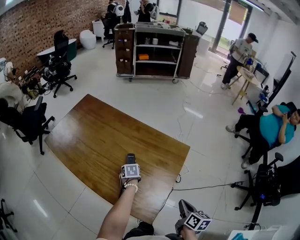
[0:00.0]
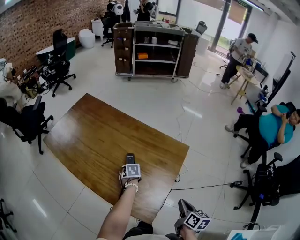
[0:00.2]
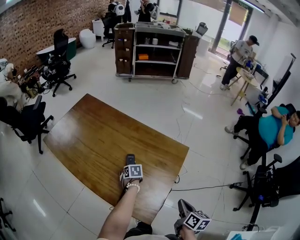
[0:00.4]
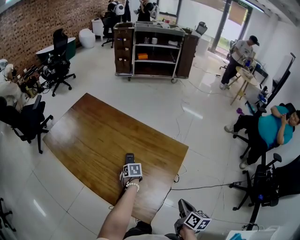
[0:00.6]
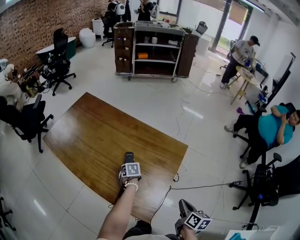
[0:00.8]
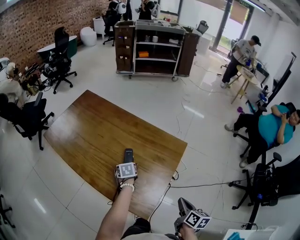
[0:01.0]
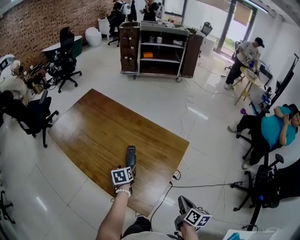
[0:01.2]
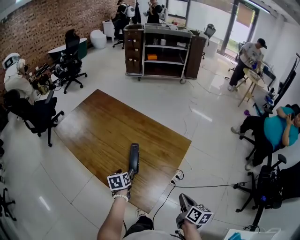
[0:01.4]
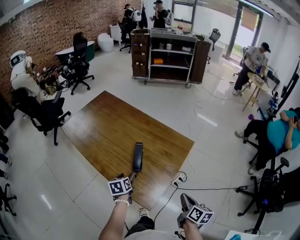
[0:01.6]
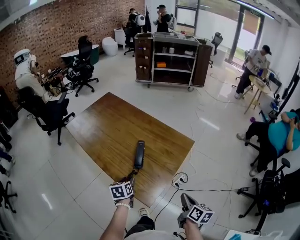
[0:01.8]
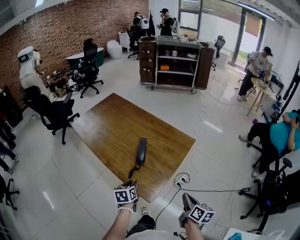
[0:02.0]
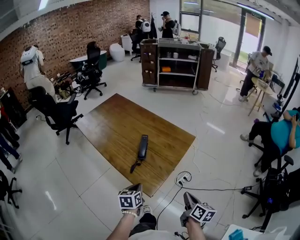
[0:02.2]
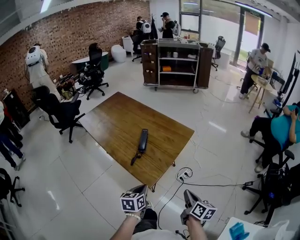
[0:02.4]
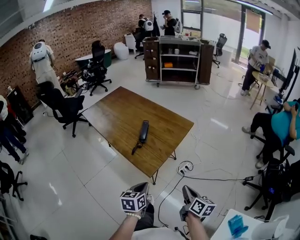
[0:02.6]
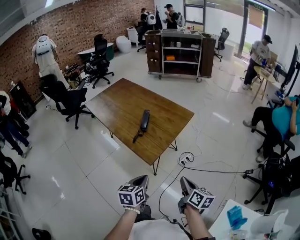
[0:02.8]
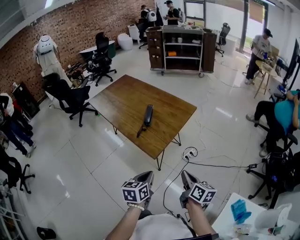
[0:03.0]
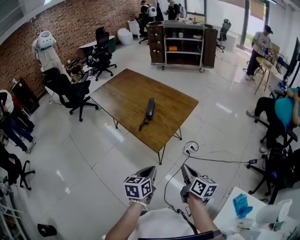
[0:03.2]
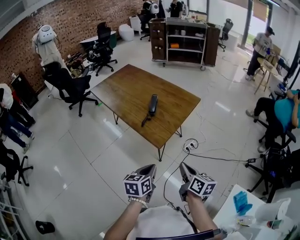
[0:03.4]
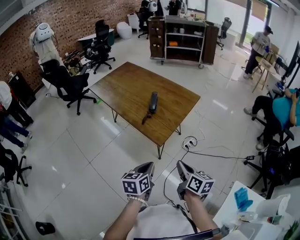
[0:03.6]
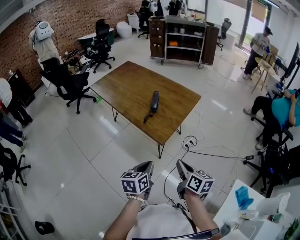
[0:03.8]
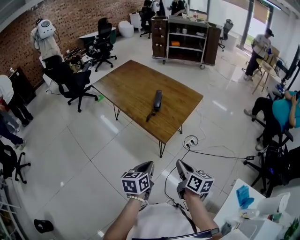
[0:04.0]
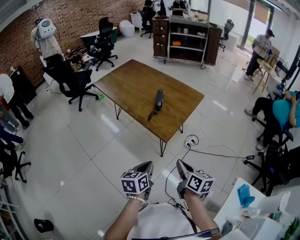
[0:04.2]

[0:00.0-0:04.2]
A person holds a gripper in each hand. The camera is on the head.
0:00.0 to 0:01.4: The left gripper shifts some 10 cm backward and upward, and changes its angle by approximately 20 degrees.
0:01.4 to 0:02.8: The right gripper goes roughly 20 cm backward; the left gripper heads backward, covering some 35 cm, and closes up.
0:02.8 to 0:04.2: The right gripper goes about 15 cm to the left; the left gripper heads to the left and backward, covering roughly 10 cm.

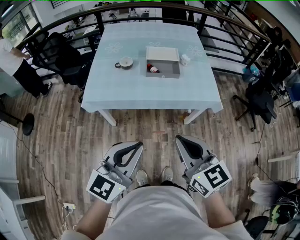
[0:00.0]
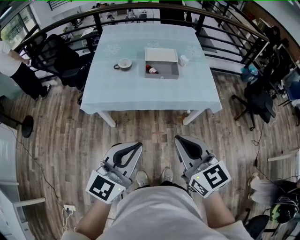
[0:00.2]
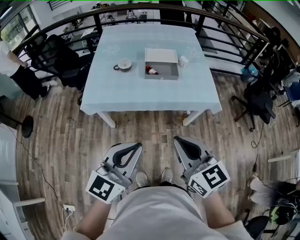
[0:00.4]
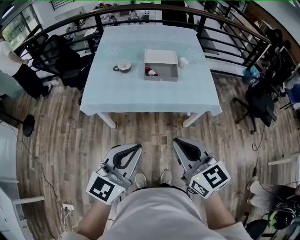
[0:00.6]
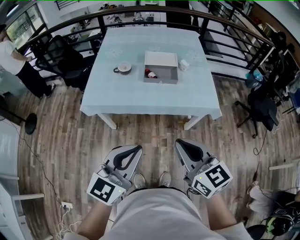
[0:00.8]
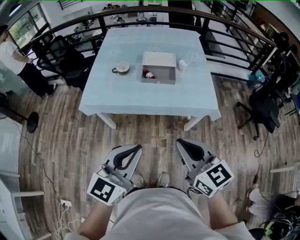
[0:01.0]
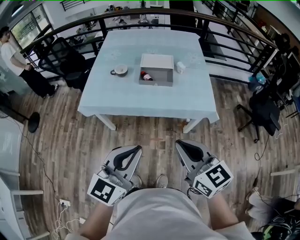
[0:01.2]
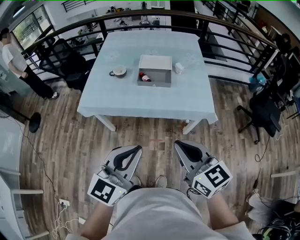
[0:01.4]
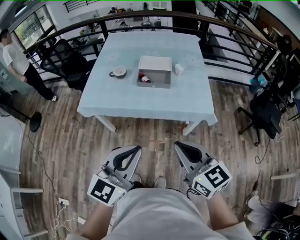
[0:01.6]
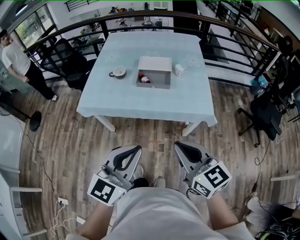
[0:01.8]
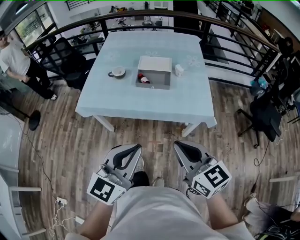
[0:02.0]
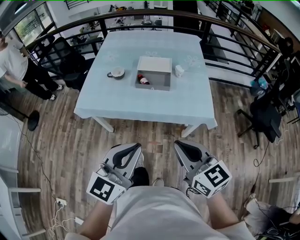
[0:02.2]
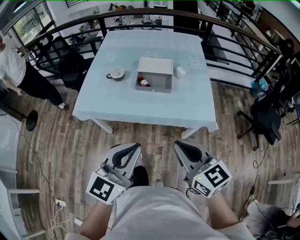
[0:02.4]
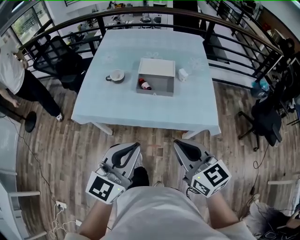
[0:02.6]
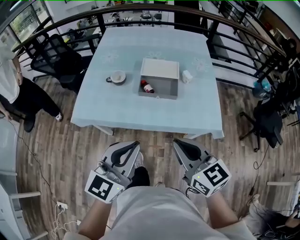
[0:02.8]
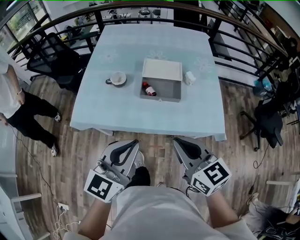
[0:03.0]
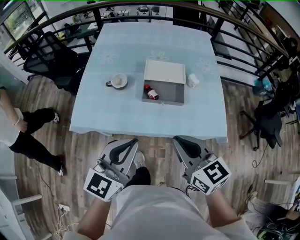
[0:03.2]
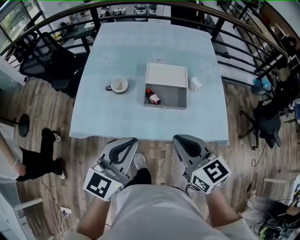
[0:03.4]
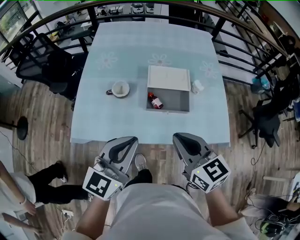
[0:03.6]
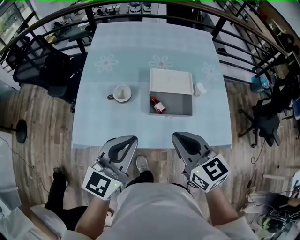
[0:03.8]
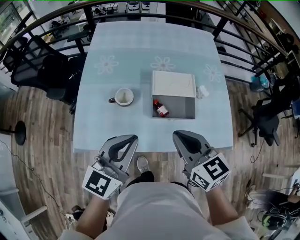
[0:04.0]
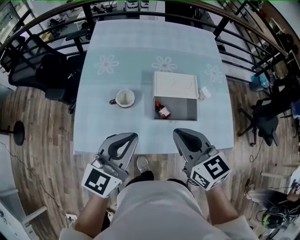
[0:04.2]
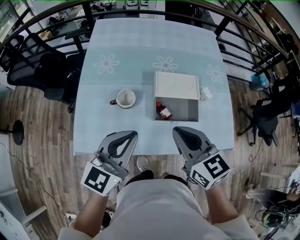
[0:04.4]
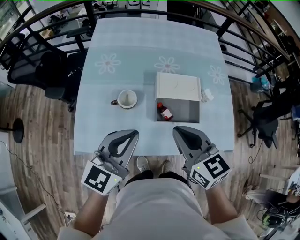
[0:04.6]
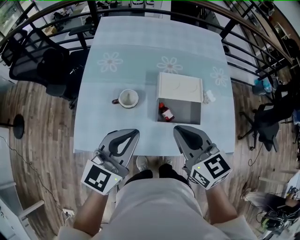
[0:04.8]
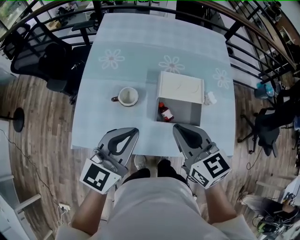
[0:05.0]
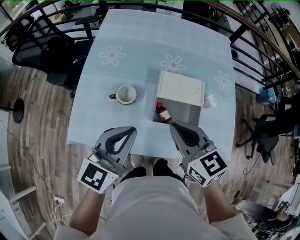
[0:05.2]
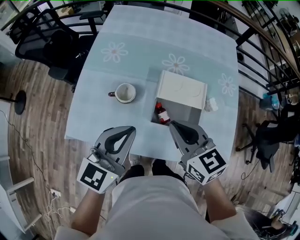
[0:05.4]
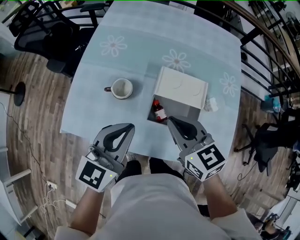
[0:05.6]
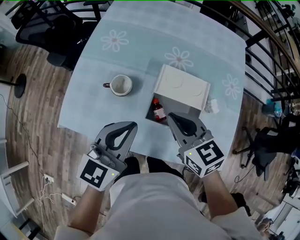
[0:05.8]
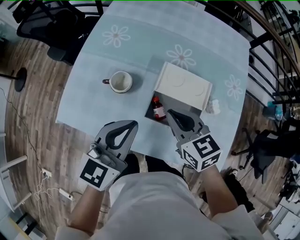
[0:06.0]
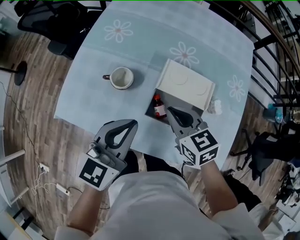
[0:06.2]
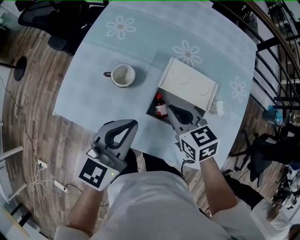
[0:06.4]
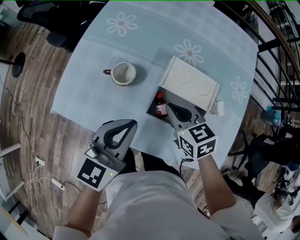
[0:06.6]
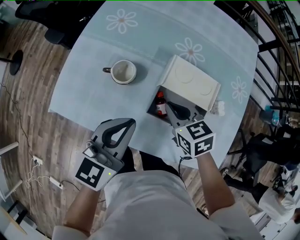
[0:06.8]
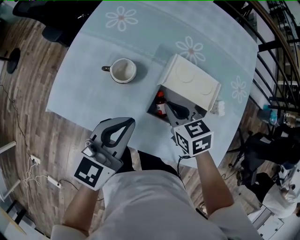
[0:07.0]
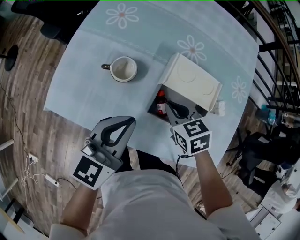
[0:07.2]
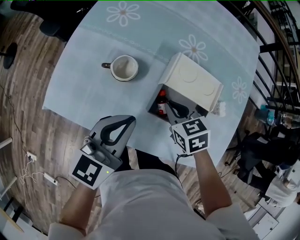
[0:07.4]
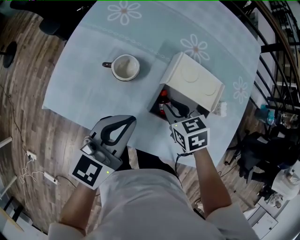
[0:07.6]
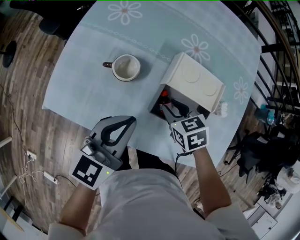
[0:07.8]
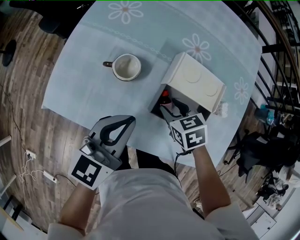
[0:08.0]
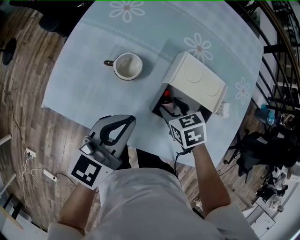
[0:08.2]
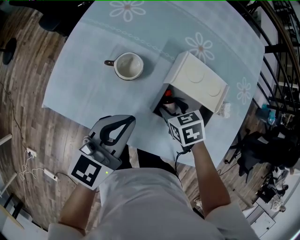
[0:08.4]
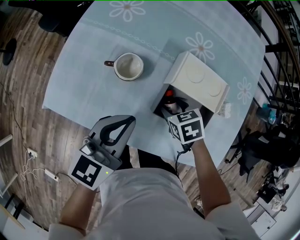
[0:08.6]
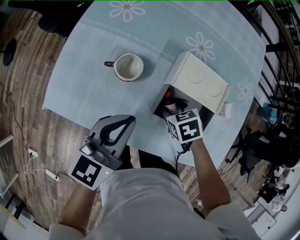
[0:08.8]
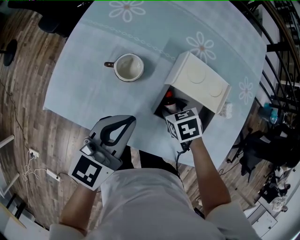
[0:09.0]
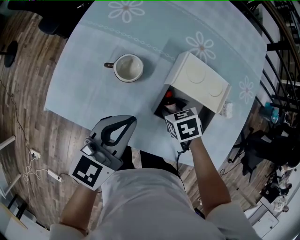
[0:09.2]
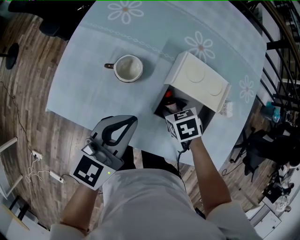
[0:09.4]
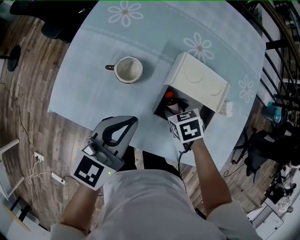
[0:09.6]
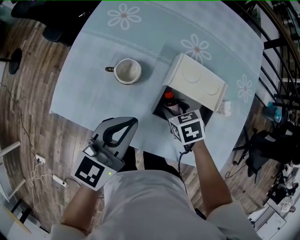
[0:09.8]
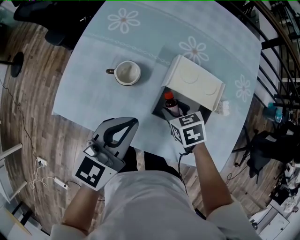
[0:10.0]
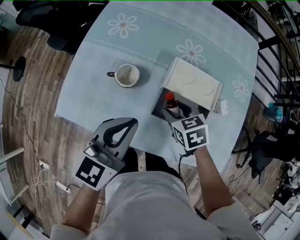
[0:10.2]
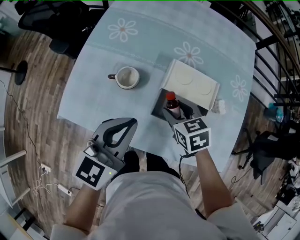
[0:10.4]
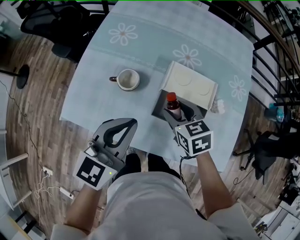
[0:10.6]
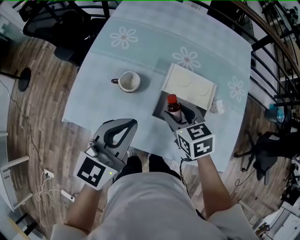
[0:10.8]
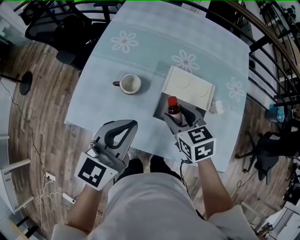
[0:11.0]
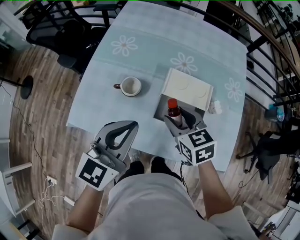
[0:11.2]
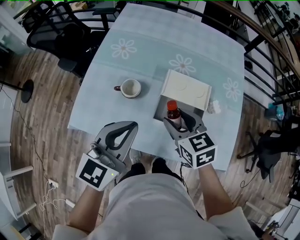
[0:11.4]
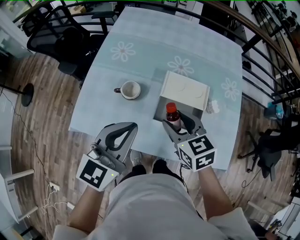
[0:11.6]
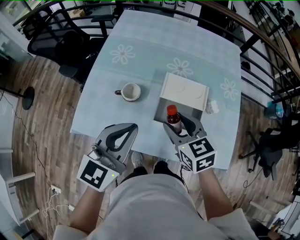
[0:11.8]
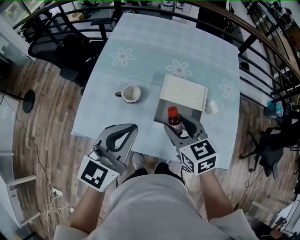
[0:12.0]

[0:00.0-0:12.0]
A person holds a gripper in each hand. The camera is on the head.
0:00.0 to 0:01.6: Both grippers travel together to the right, about 15 cm.
0:01.6 to 0:03.0: Both grippers move forward, approximately 20 cm.
0:03.0 to 0:04.4: Both grippers travel together forward and to the left, about 25 cm.
0:04.4 to 0:06.0: The left gripper goes roughly 10 cm to the right, forward and downward. Meanwhile the right gripper goes about 15 cm forward and downward, and turns by about 20 degrees.
0:06.0 to 0:07.6: The right gripper shifts approximately 15 cm downward, and turns by about 20 degrees, while the left gripper goes roughly 5 cm downward.
0:07.6 to 0:09.0: The right gripper shifts some 5 cm downward, and opens its fingers.
0:09.0 to 0:10.4: The left gripper goes some 5 cm upward. Meanwhile the right gripper travels upward by about 10 cm, and turns by roughly 20 degrees.
0:10.4 to 0:12.0: The right gripper shifts some 15 cm upward and backward. The left gripper moves upward, about 10 cm.

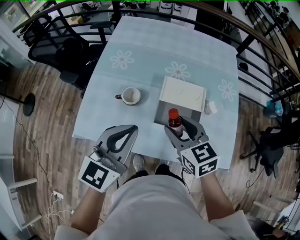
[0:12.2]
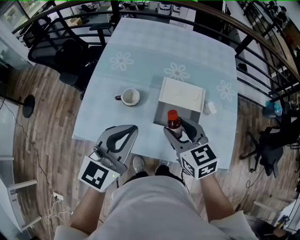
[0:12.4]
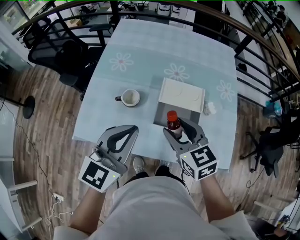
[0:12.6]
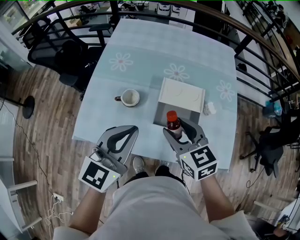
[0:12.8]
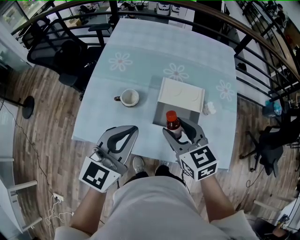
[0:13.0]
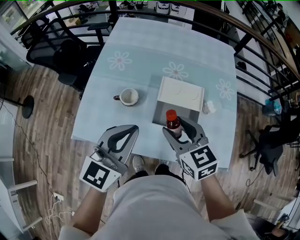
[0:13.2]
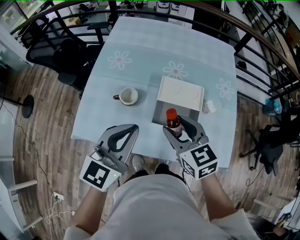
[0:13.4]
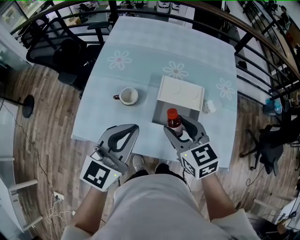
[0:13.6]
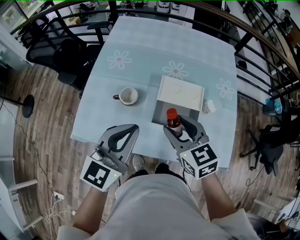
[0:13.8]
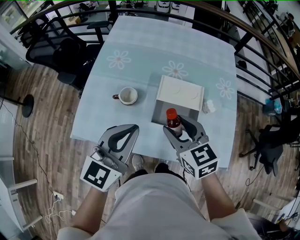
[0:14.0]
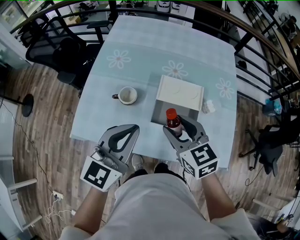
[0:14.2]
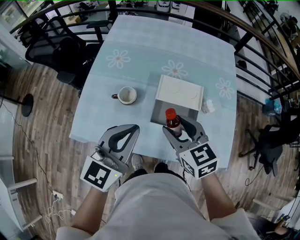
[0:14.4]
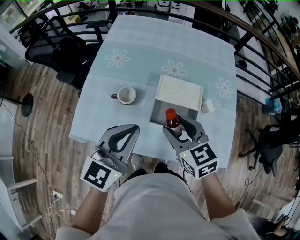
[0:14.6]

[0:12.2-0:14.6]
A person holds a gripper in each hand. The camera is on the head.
0:12.2 to 0:13.4: The grippers stay close to where they were, moving slightly.
0:13.4 to 0:14.6: The two grippers keep their place.

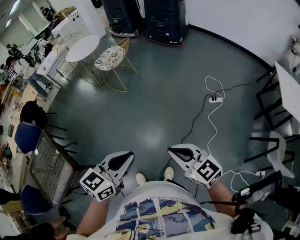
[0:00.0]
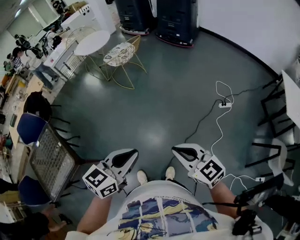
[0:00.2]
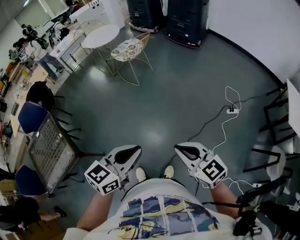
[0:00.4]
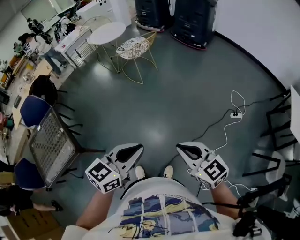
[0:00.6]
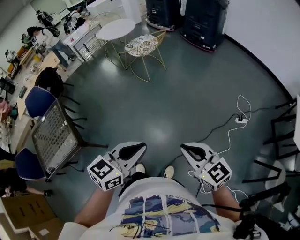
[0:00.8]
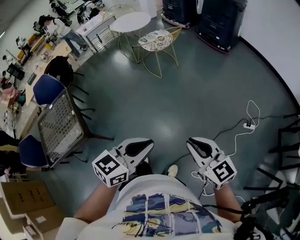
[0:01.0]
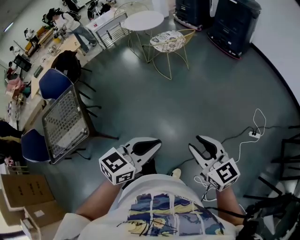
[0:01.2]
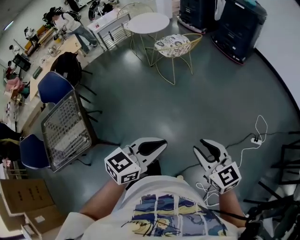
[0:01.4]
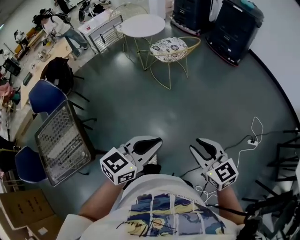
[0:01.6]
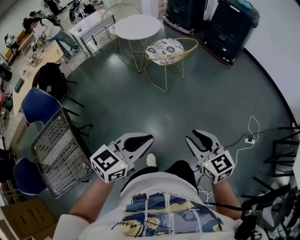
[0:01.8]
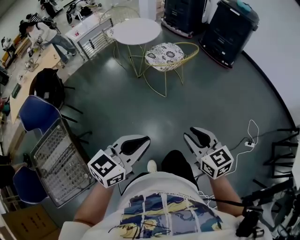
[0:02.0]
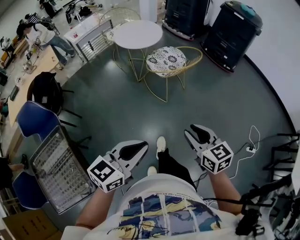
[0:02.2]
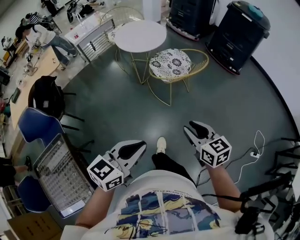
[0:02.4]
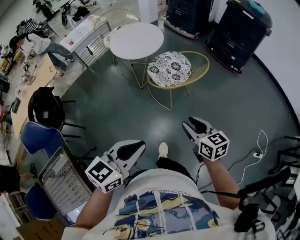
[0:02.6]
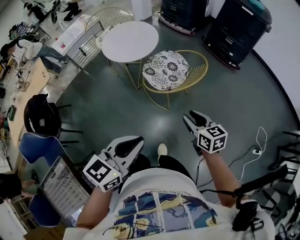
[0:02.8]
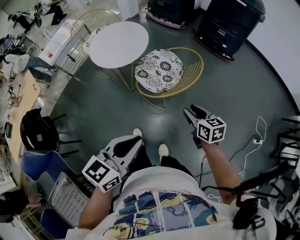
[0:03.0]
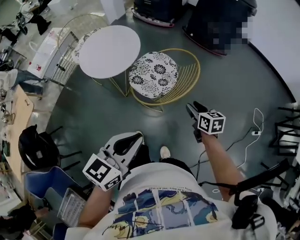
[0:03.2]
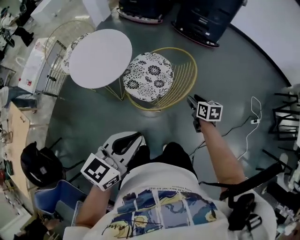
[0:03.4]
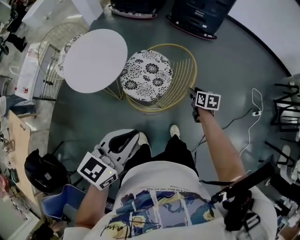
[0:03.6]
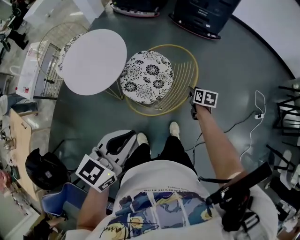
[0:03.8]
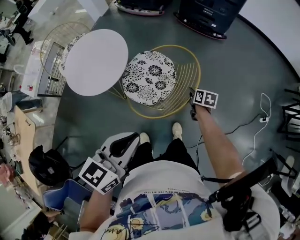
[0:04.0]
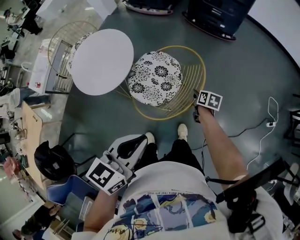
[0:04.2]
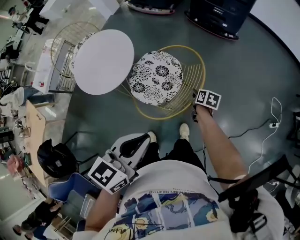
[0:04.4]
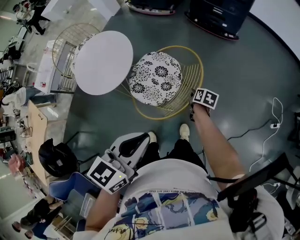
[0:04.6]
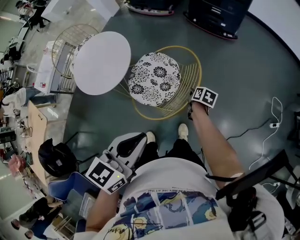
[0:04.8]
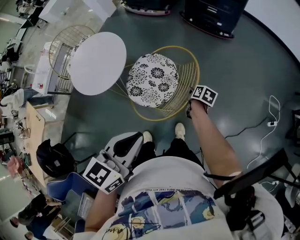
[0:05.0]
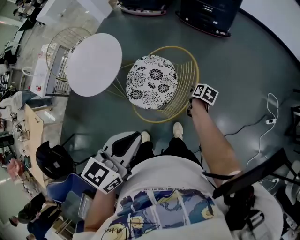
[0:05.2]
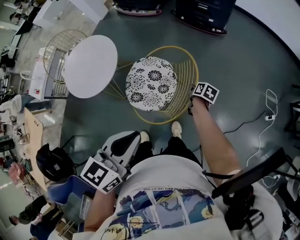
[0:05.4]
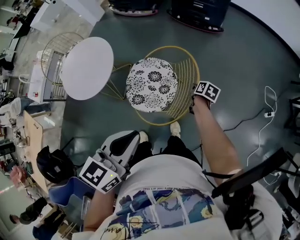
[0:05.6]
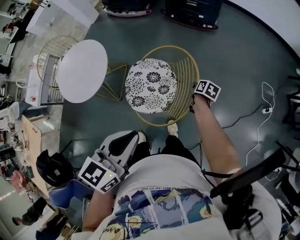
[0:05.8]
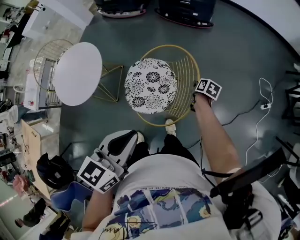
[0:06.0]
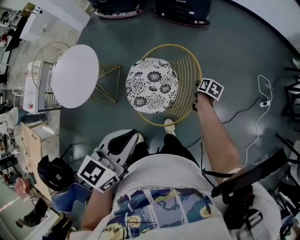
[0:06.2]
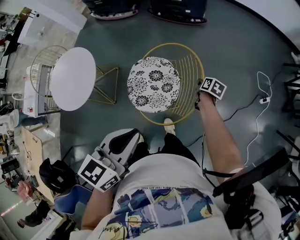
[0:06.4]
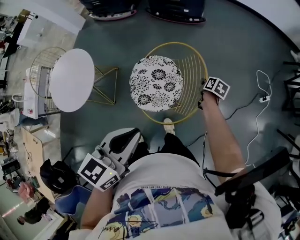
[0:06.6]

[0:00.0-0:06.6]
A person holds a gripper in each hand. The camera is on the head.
0:00.0 to 0:01.6: The grippers both shift forward and to the left by some 30 cm. The right gripper opens up.
0:01.6 to 0:03.2: The pair of grippers is taken forward, approximately 60 cm. The right gripper changes its angle by roughly 50 degrees.
0:03.2 to 0:05.0: The right gripper heads forward and downward, covering roughly 25 cm, and swivels roughly 40 degrees, while the left gripper heads forward and to the right, covering some 20 cm.
0:05.0 to 0:06.6: The right gripper travels to the right by roughly 25 cm; the left gripper moves to the right, approximately 10 cm.
